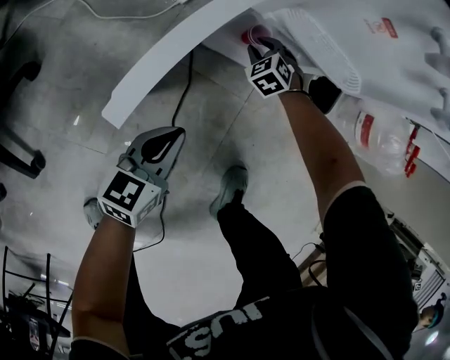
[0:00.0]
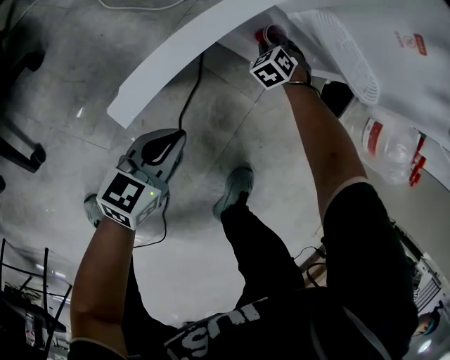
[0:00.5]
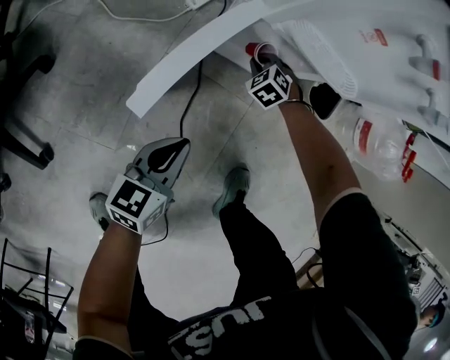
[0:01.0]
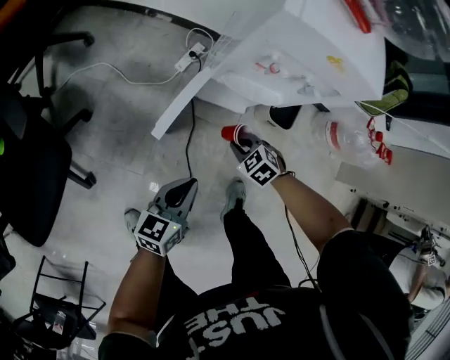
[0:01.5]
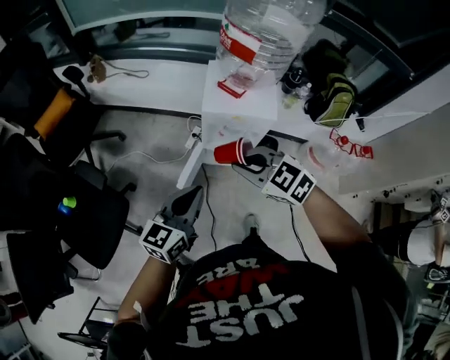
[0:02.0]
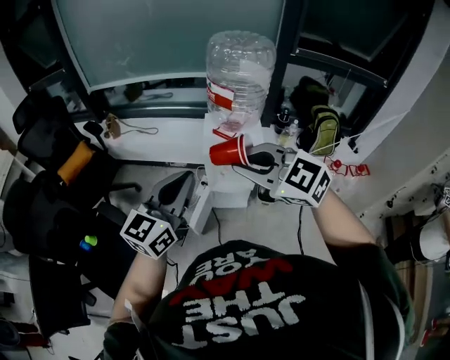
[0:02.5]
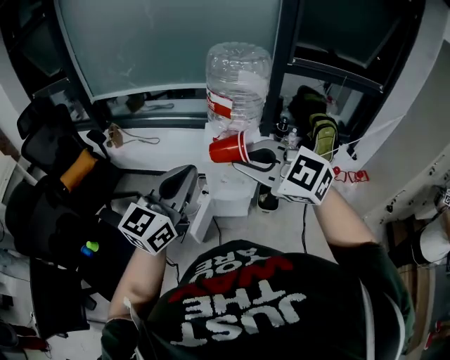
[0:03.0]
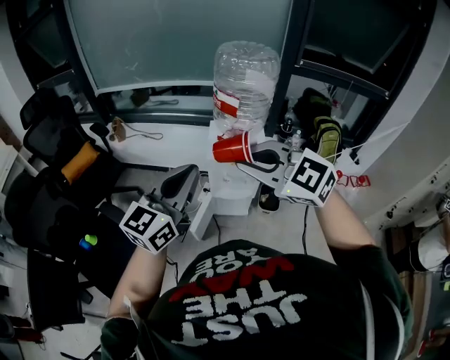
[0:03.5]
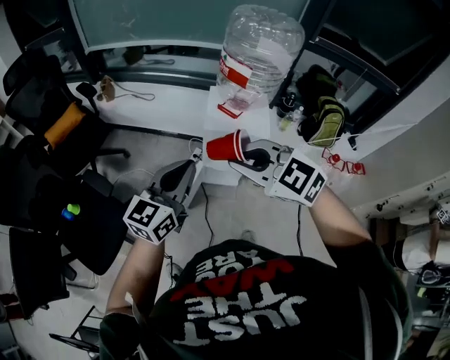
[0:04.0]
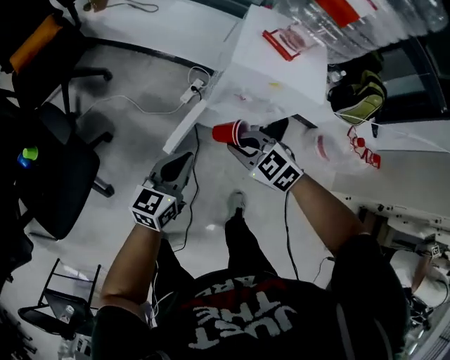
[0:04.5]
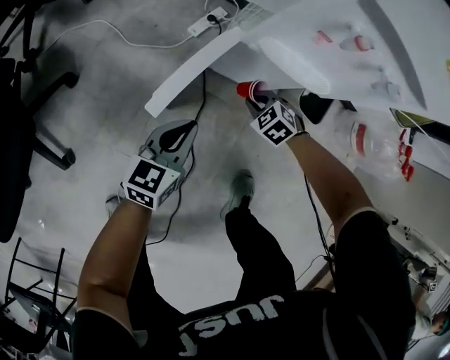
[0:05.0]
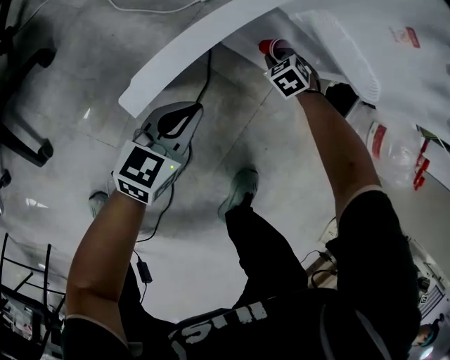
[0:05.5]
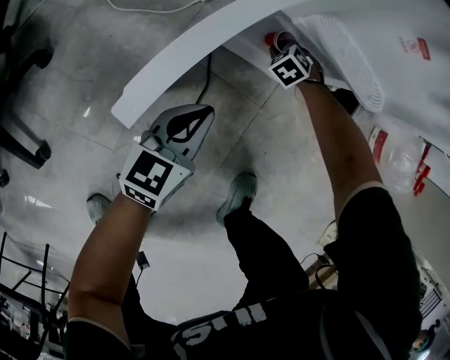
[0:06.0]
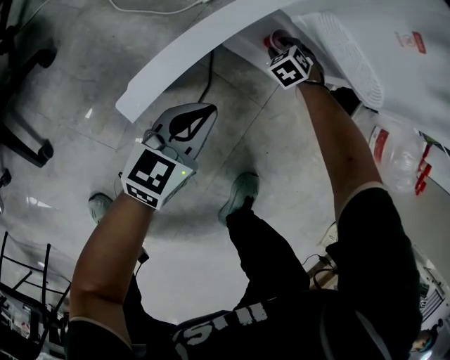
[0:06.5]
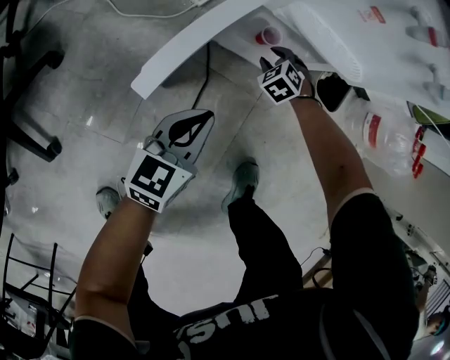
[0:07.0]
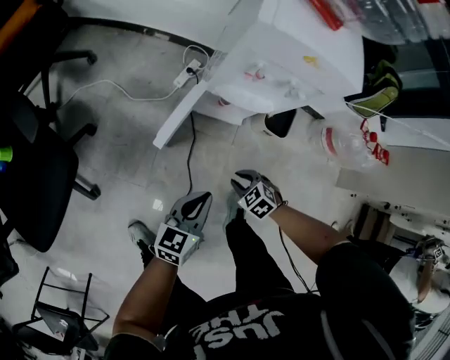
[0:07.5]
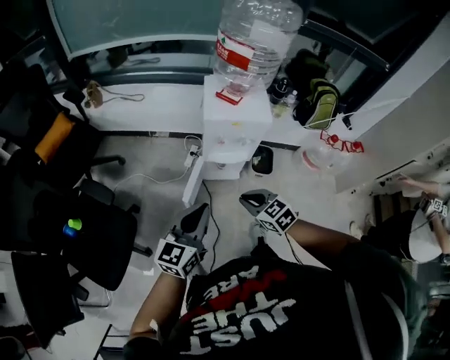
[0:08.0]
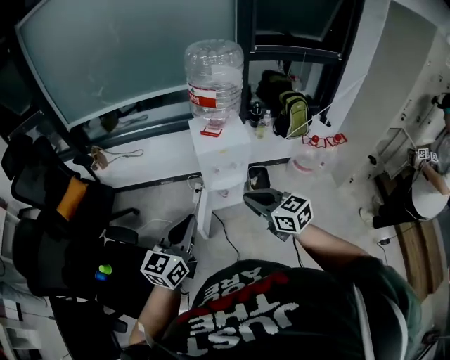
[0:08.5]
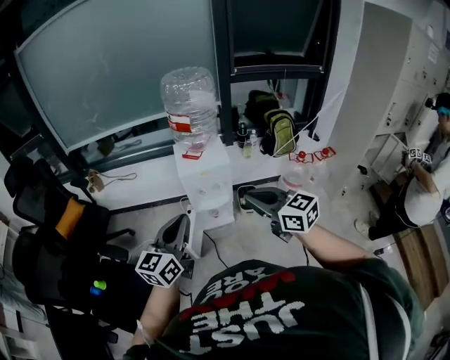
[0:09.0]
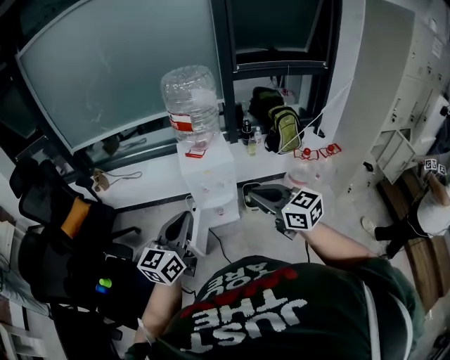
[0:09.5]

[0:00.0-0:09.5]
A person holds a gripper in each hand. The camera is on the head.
0:00.0 to 0:02.0: The two grippers go about 70 cm upward. The right gripper rotates roughly 40 degrees.
0:02.0 to 0:04.0: The grippers both shift upward by about 15 cm.
0:04.0 to 0:05.5: Both grippers travel together downward, about 90 cm. The left gripper turns by about 30 degrees. The right gripper points its fingers about 40 degrees further downward.
0:05.5 to 0:07.5: The grippers both shift upward by about 30 cm. The right gripper changes its angle by about 20 degrees.
0:07.5 to 0:09.5: Both grippers travel together upward, about 70 cm. The left gripper changes its angle by approximately 30 degrees, while the right gripper tilts its fingers about 60 degrees upward.

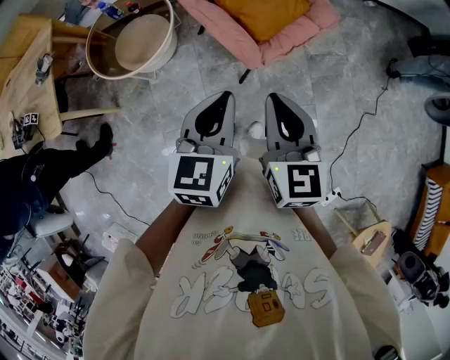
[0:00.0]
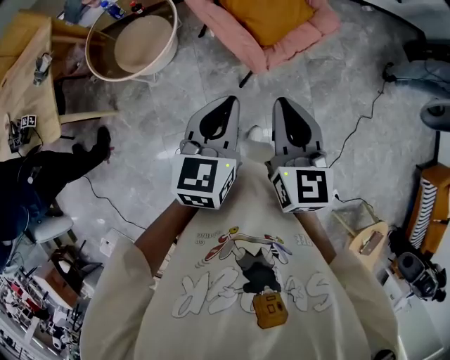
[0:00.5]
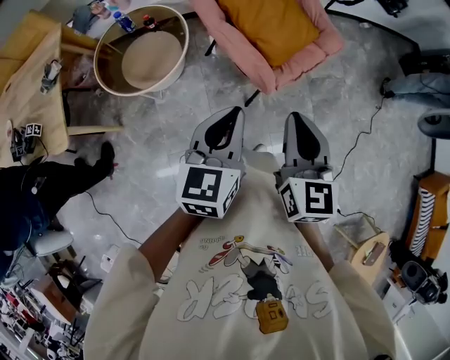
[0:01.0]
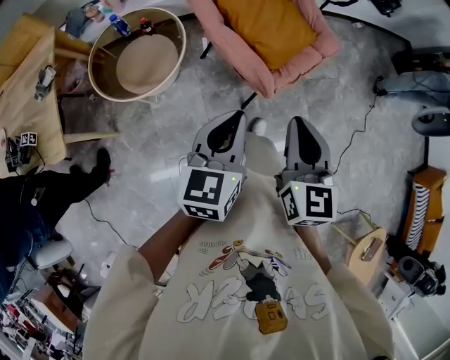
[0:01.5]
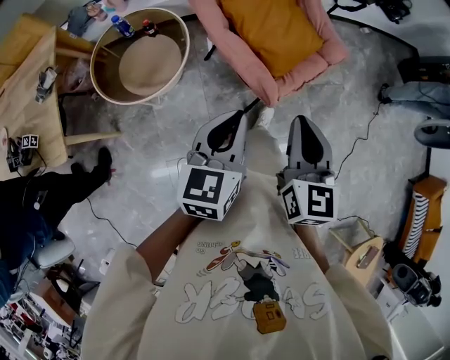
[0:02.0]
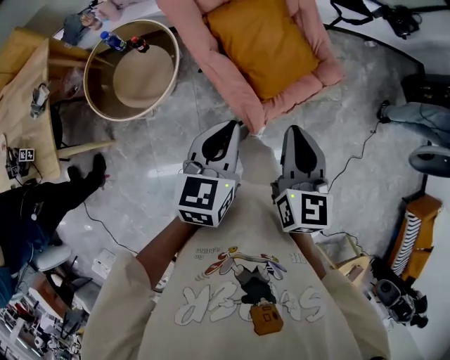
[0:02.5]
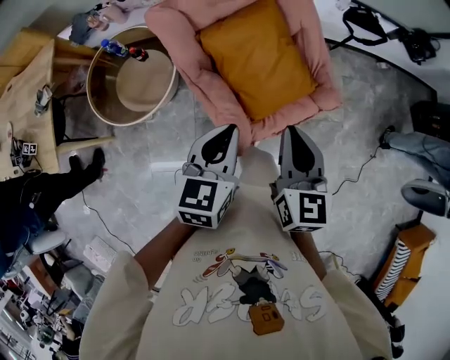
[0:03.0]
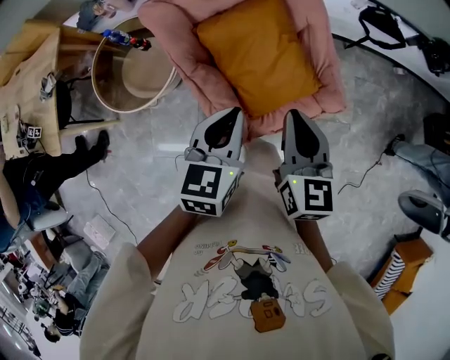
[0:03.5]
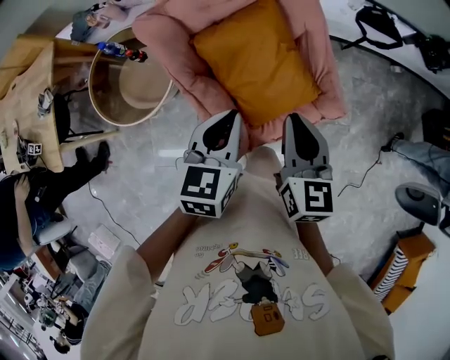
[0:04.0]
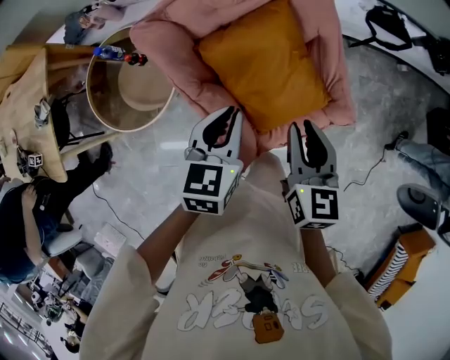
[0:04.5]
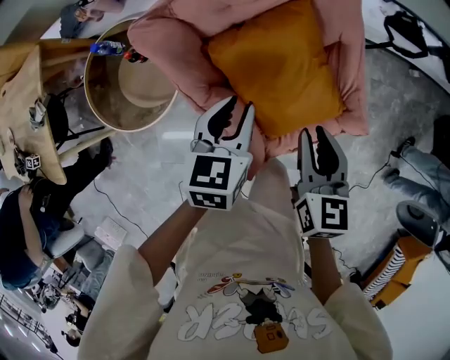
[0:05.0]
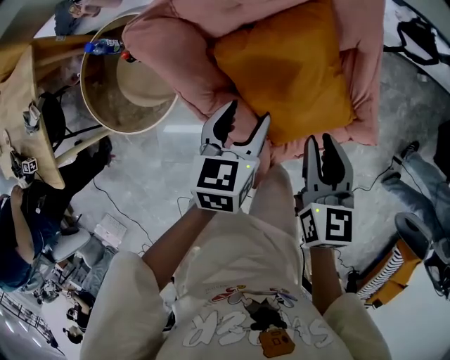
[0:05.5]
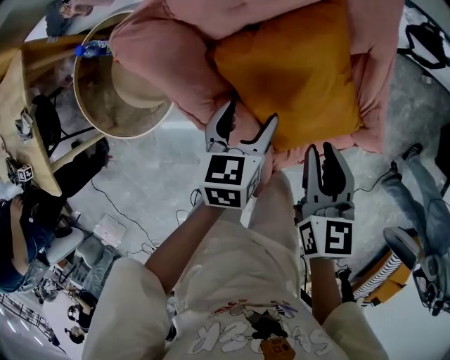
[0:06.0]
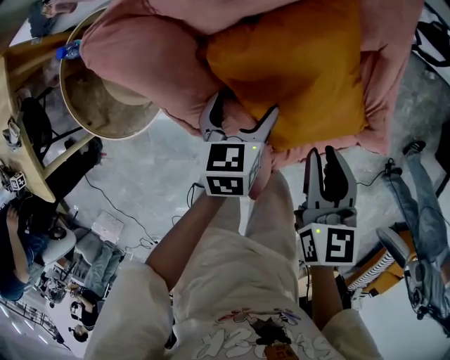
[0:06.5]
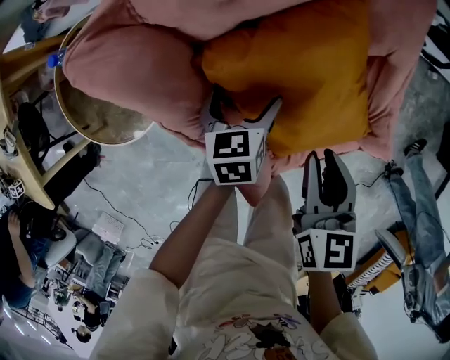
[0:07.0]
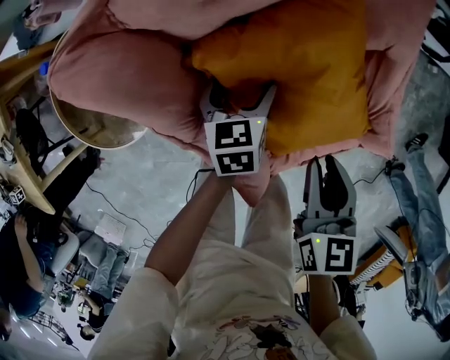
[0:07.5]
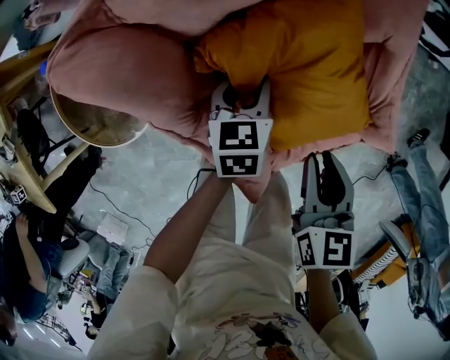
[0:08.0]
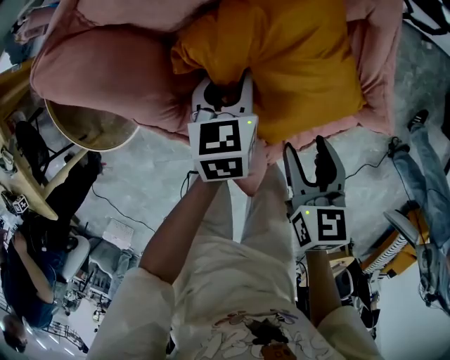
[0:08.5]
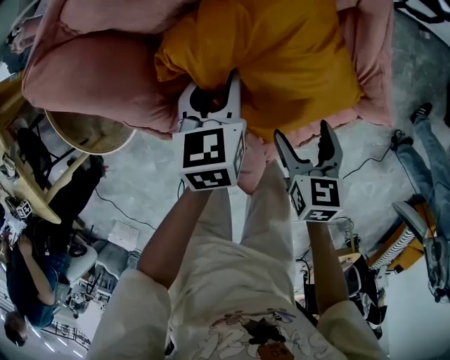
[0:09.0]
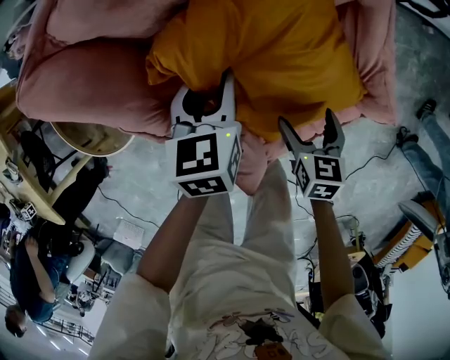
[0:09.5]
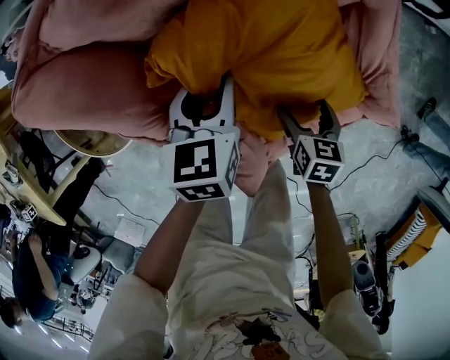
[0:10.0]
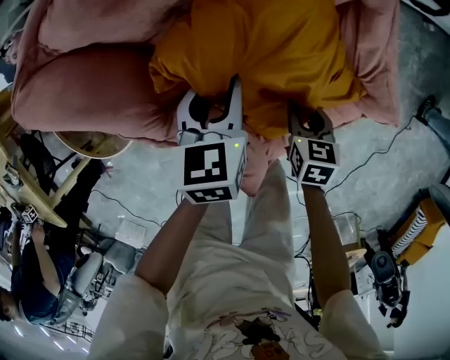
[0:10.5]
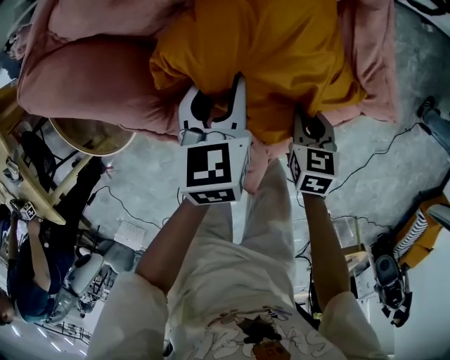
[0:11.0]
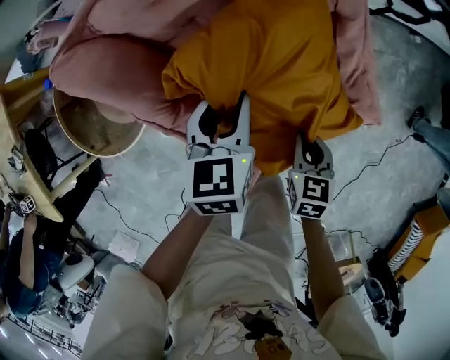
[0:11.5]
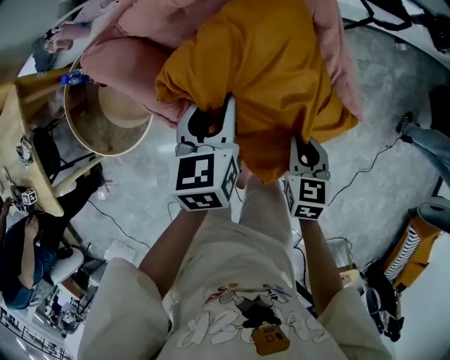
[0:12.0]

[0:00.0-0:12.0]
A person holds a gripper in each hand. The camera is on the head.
0:00.0 to 0:02.0: The grippers both shift to the left and forward by some 15 cm.
0:02.0 to 0:04.0: The grippers both shift forward and to the right by approximately 40 cm. The right gripper swivels some 20 degrees.
0:04.0 to 0:06.0: The left gripper shifts roughly 30 cm downward and forward, and opens its fingers. Meanwhile the right gripper is displaced downward, forward and to the left by some 20 cm.
0:06.0 to 0:08.0: The left gripper heads downward and forward, covering about 15 cm, and opens, then closes once more. Meanwhile the right gripper heads downward, covering roughly 10 cm.
0:08.0 to 0:10.0: The right gripper heads downward, covering approximately 20 cm, and opens up.
0:10.0 to 0:12.0: The grippers both shift upward by roughly 20 cm. The right gripper closes up.

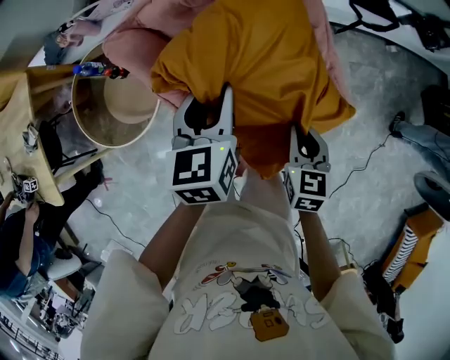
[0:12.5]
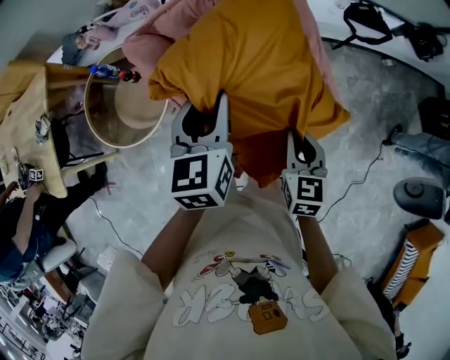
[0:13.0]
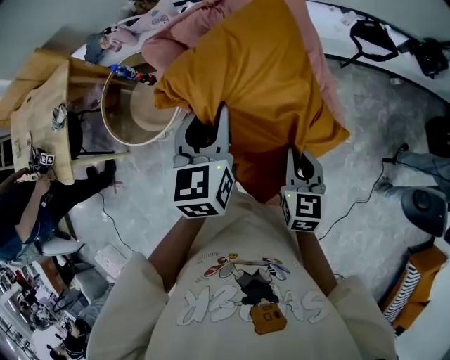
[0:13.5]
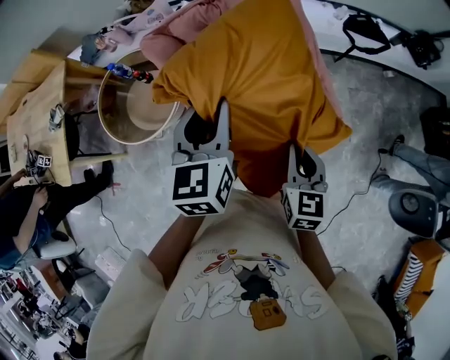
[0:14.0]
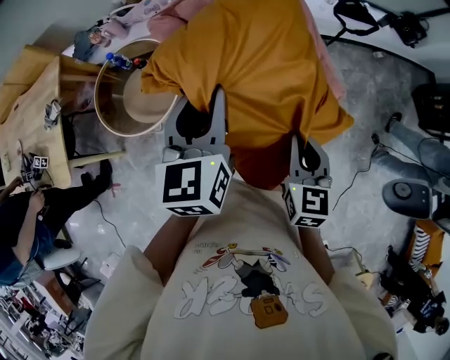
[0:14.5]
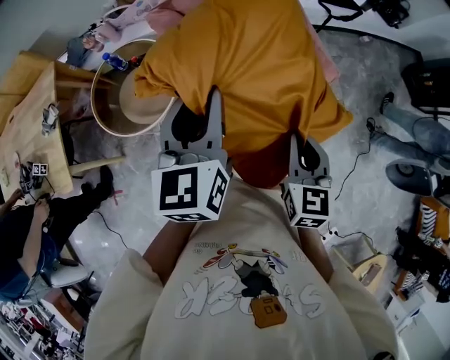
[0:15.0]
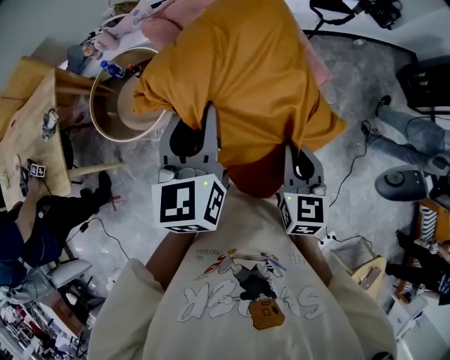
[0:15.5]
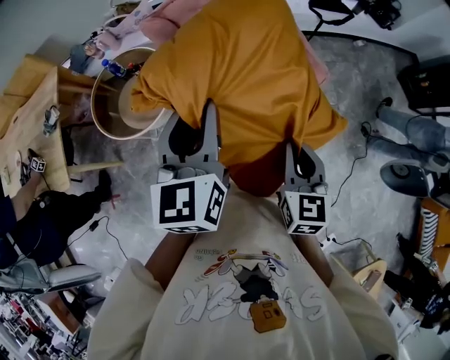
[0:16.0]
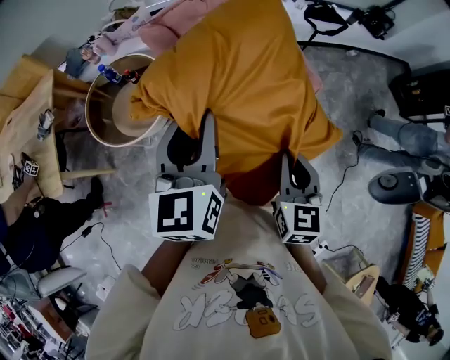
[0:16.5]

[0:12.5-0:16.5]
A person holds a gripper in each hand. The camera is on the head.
0:12.5 to 0:14.5: The left gripper goes some 25 cm backward and upward, while the right gripper travels backward, upward and to the left by some 25 cm.
0:14.5 to 0:16.5: The grippers both shift backward by approximately 15 cm.

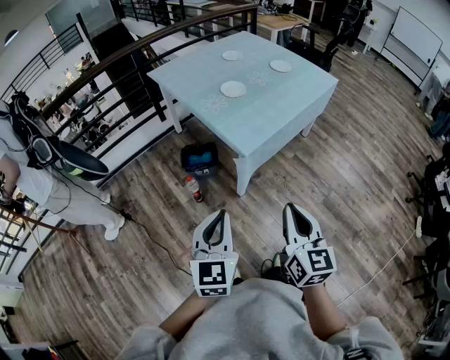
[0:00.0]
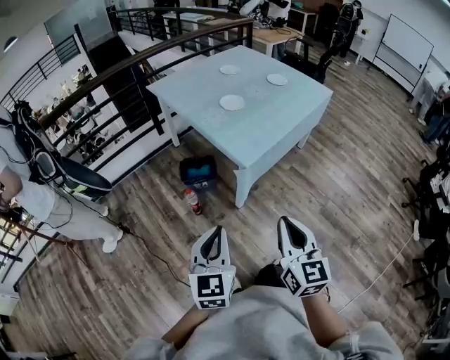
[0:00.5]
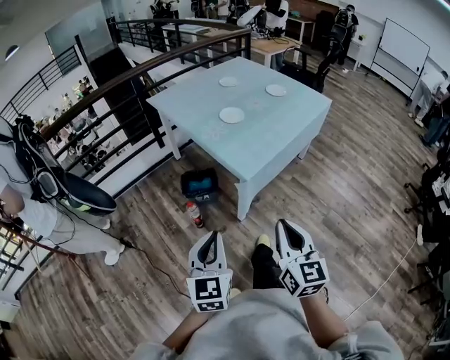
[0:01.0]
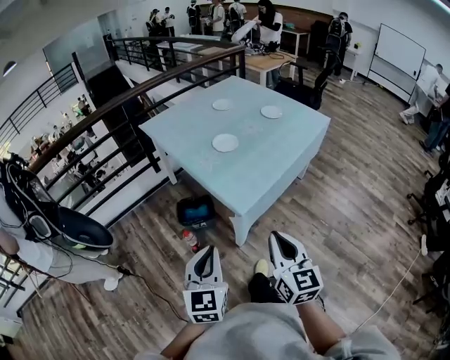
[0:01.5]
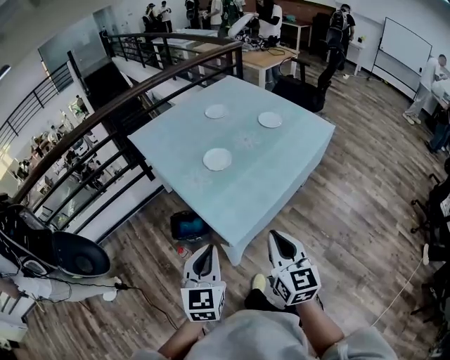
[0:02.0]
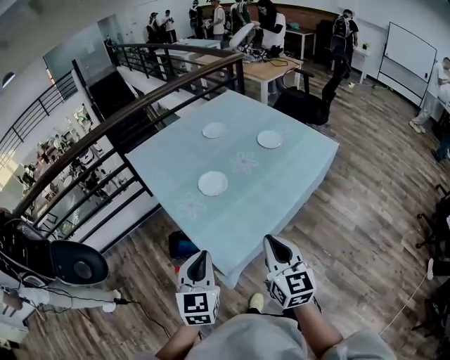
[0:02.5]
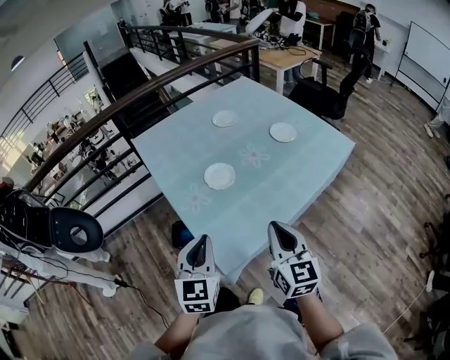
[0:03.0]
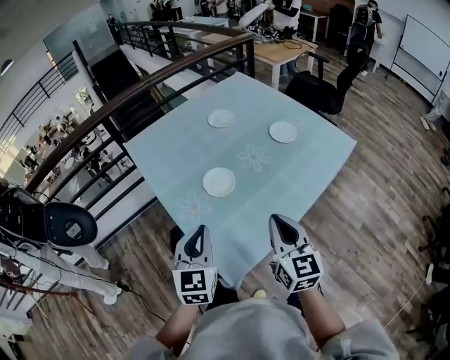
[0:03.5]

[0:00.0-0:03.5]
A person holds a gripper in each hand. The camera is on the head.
0:00.0 to 0:02.0: Both grippers move forward, about 25 cm.
0:02.0 to 0:03.5: Both grippers travel together forward, approximately 20 cm.
